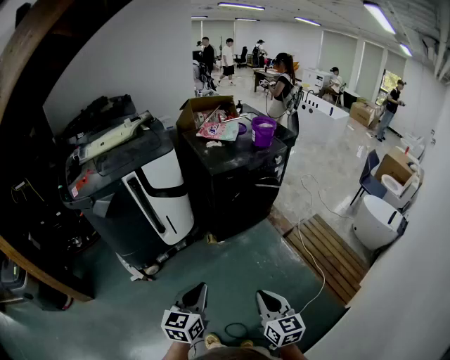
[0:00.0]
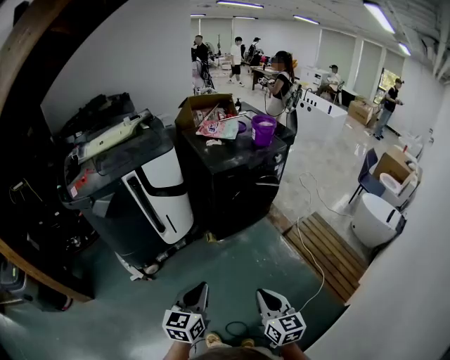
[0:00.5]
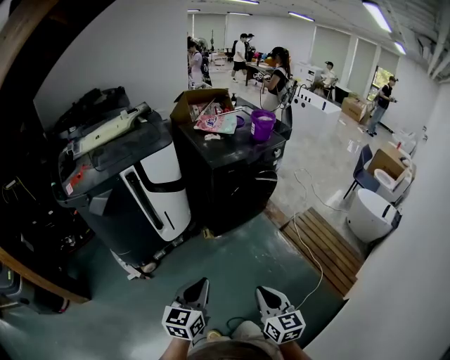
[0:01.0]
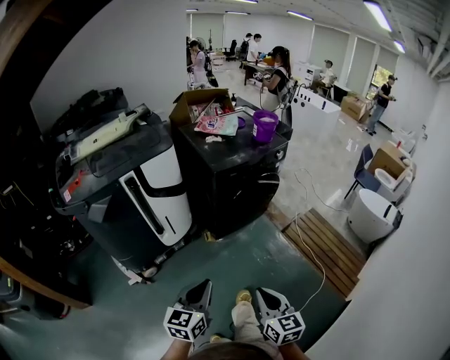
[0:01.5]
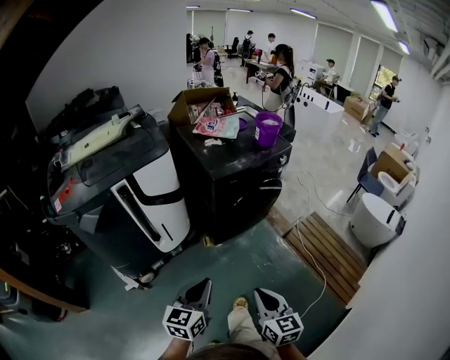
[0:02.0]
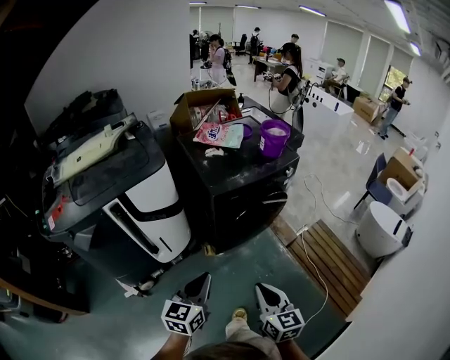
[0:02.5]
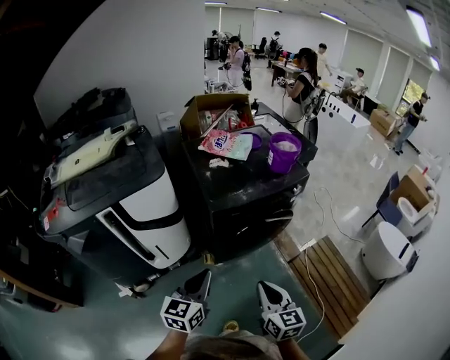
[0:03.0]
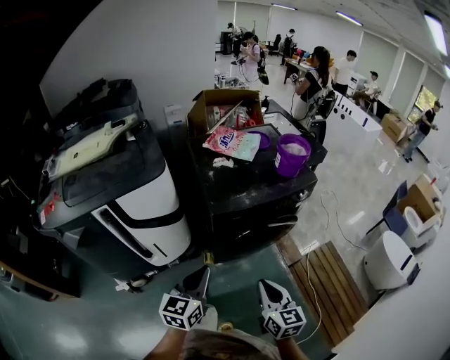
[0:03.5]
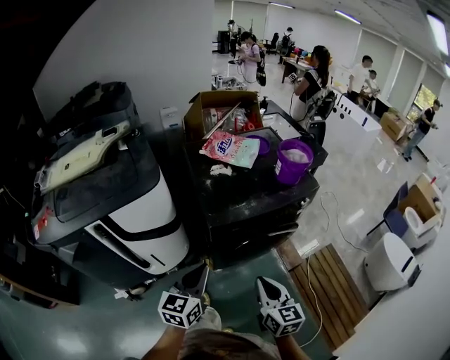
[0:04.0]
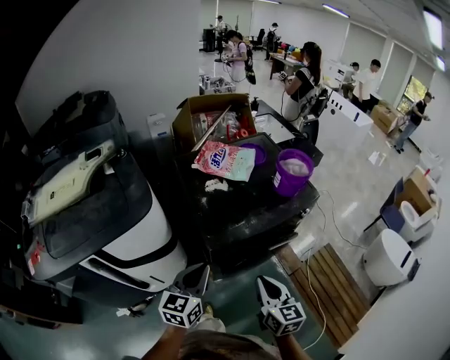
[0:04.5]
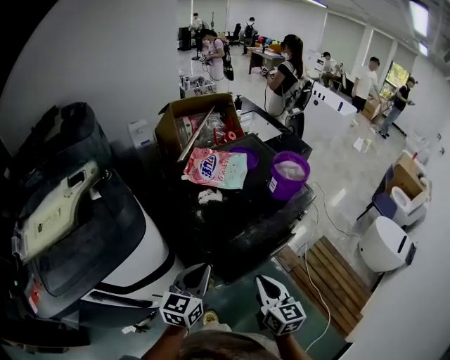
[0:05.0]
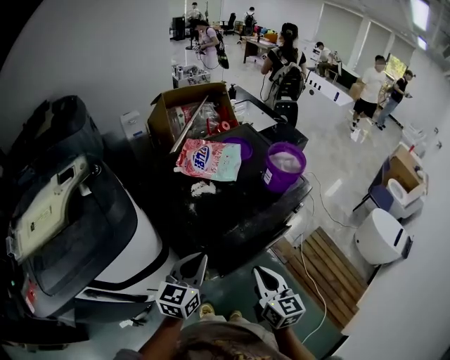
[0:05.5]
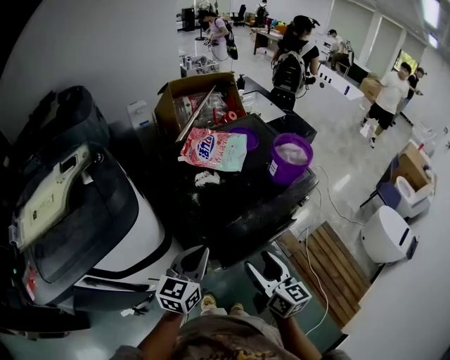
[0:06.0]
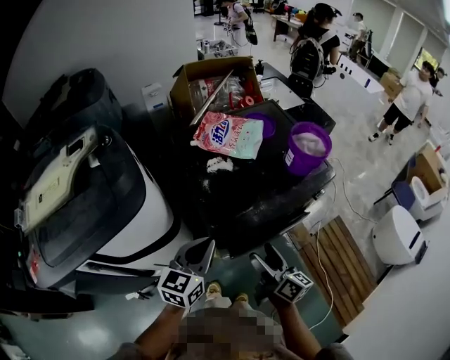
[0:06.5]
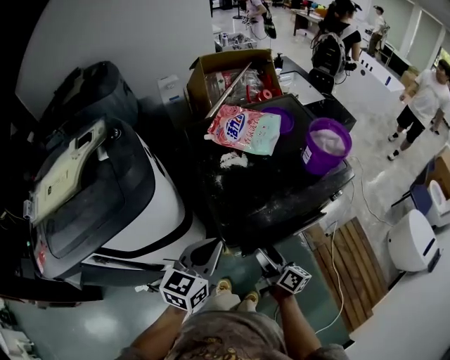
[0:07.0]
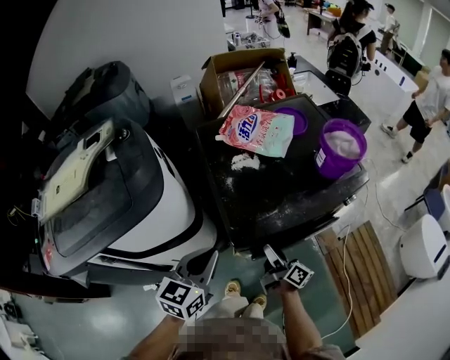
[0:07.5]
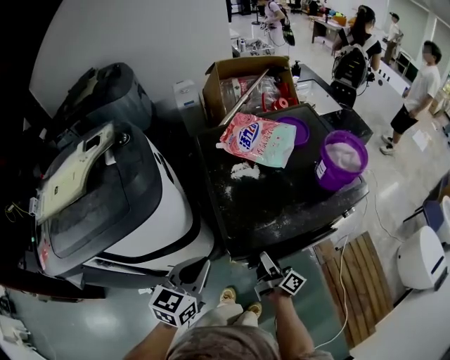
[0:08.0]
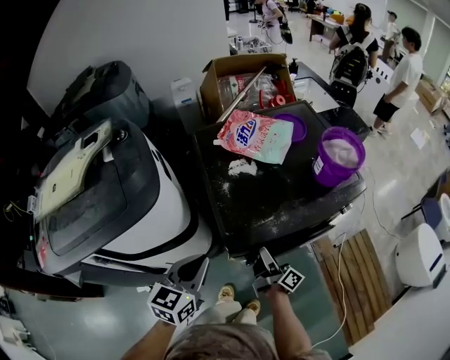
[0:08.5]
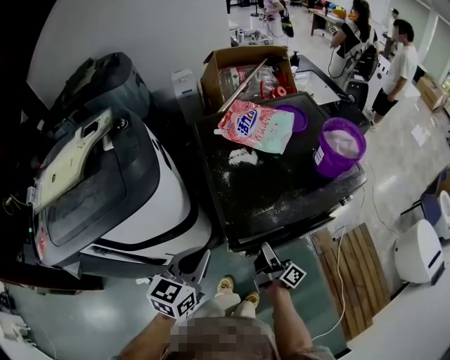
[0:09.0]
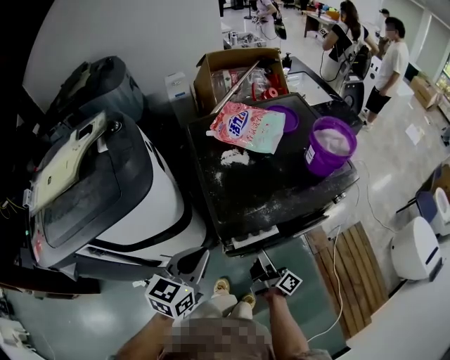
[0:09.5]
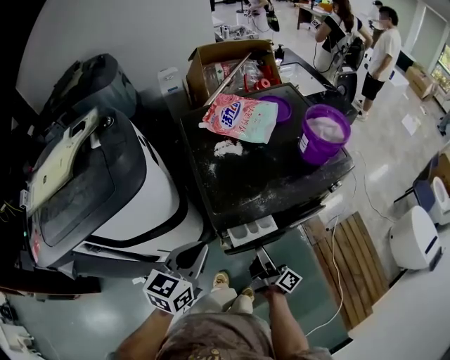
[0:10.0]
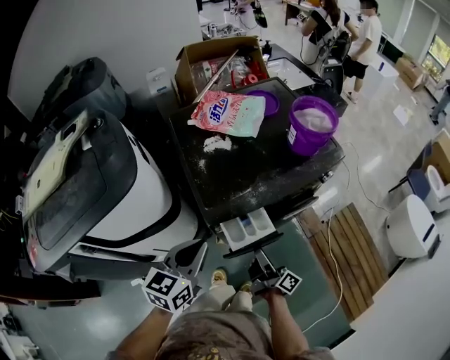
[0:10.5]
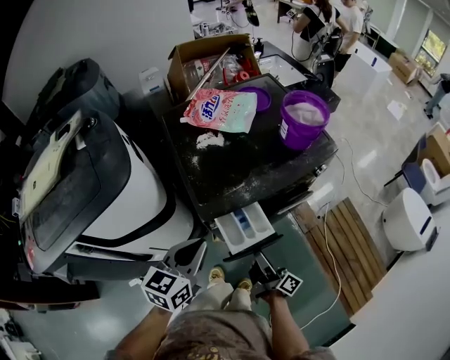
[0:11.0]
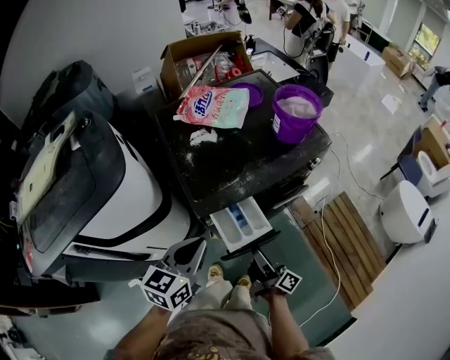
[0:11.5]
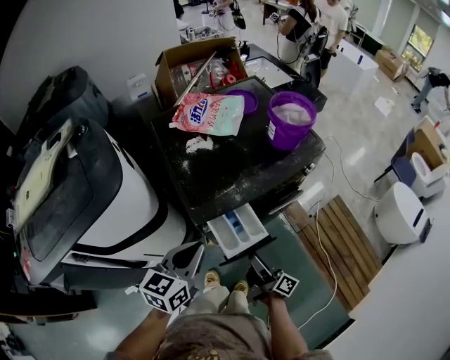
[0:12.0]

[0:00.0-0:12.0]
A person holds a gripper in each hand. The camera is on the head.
0:00.0 to 0:02.0: The left gripper moves forward, some 10 cm. Meanwhile the right gripper goes approximately 15 cm forward and to the left.
0:02.0 to 0:04.0: Both grippers move forward, some 35 cm.
0:04.0 to 0:06.0: The grippers both shift forward by approximately 15 cm. The right gripper opens.
0:06.0 to 0:08.0: The right gripper heads downward and forward, covering approximately 20 cm, and rotates around the line of its fingers by about 40 degrees, clockwise from behind; the left gripper moves approximately 5 cm.
0:08.0 to 0:10.0: The right gripper travels backward by some 5 cm, and closes.
0:10.0 to 0:12.0: The right gripper travels backward by approximately 5 cm.

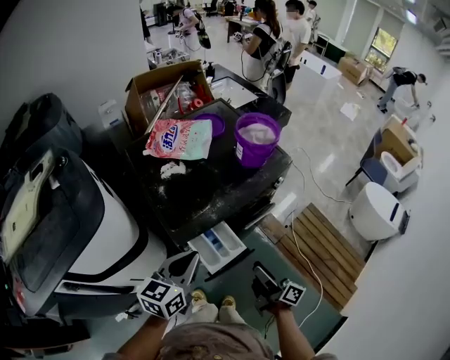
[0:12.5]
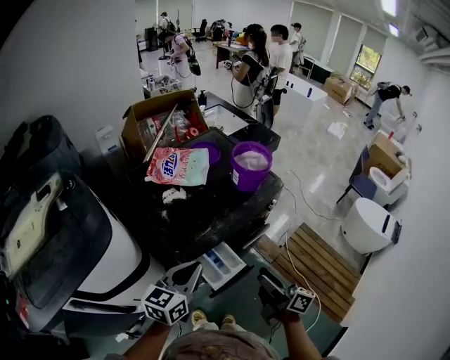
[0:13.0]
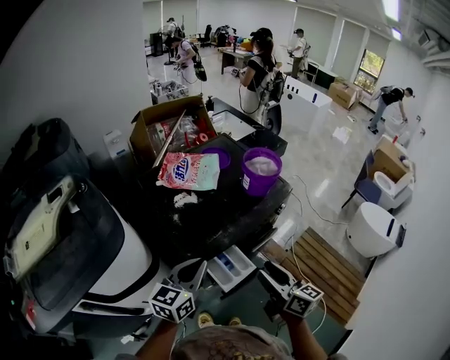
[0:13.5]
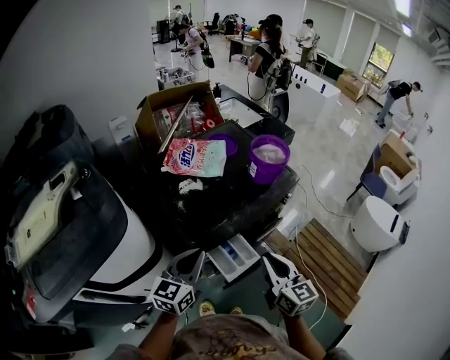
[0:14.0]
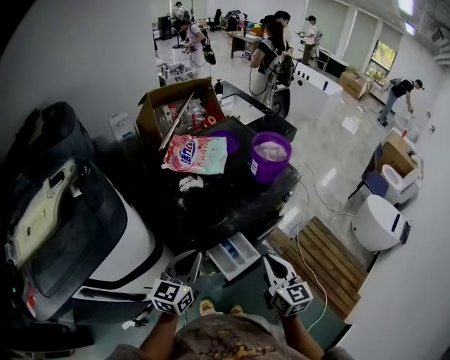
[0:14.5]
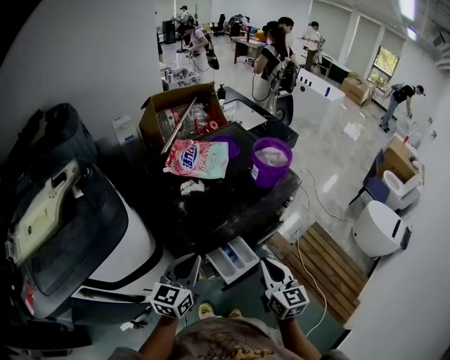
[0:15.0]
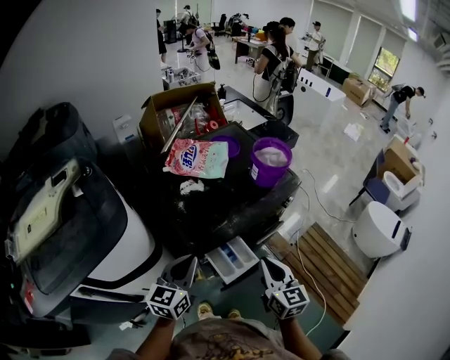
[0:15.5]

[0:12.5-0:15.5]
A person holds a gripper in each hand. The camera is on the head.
0:12.5 to 0:14.0: The right gripper moves upward, some 15 cm, twists about 50 degrees counterclockwise, seen from behind, and closes its fingers. The left gripper is displaced to the left by about 5 cm.
0:14.0 to 0:15.5: The grippers move only a little.

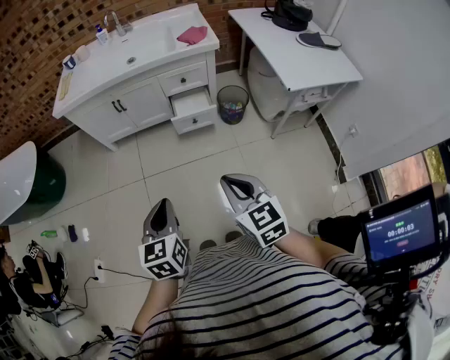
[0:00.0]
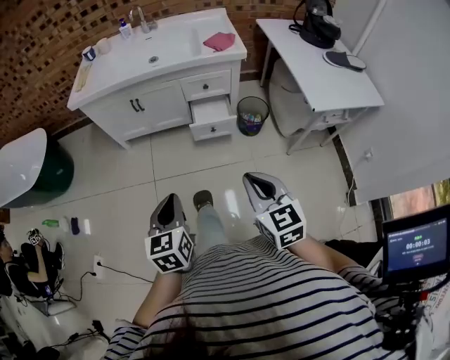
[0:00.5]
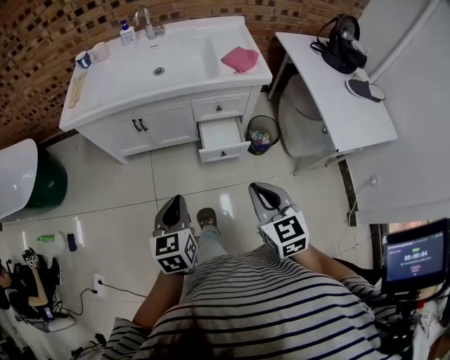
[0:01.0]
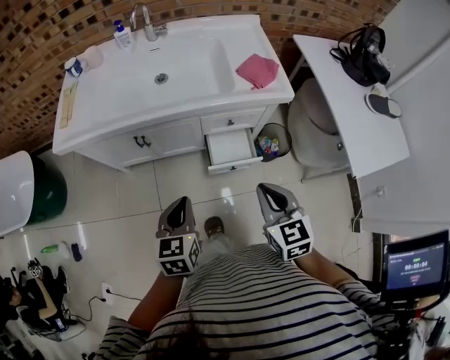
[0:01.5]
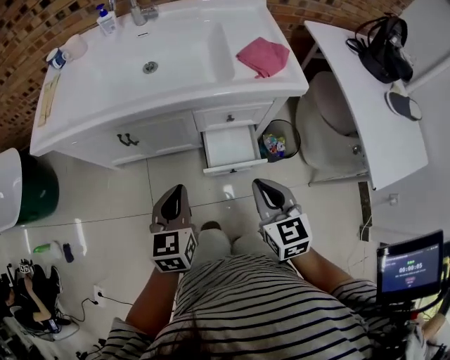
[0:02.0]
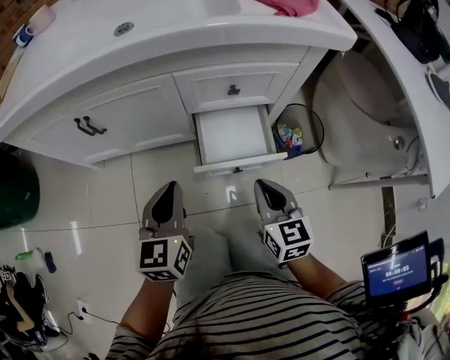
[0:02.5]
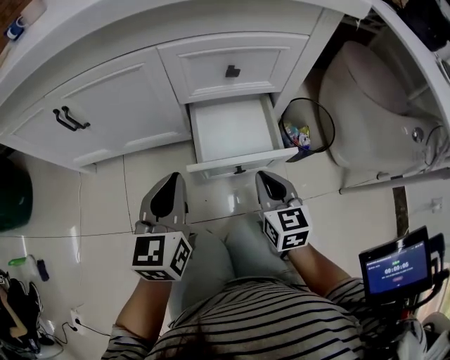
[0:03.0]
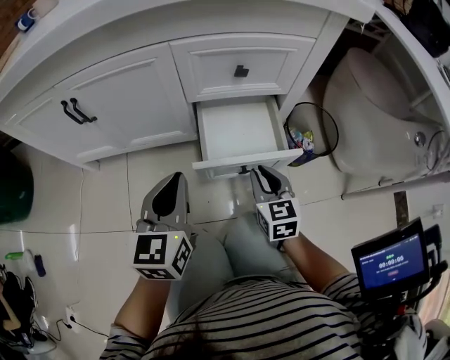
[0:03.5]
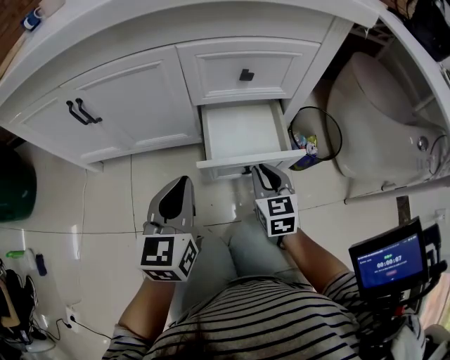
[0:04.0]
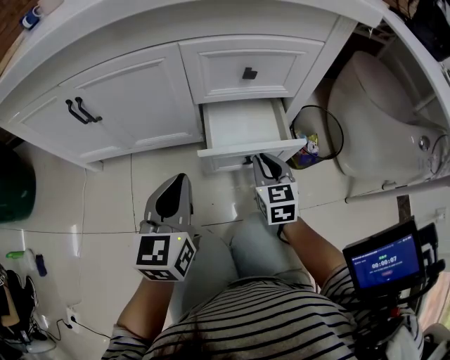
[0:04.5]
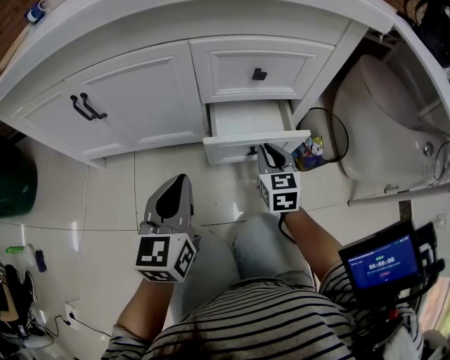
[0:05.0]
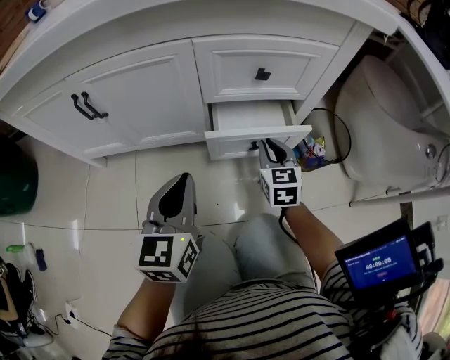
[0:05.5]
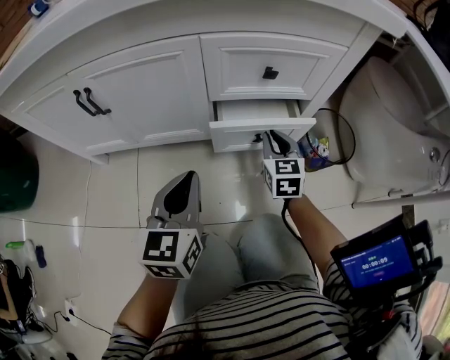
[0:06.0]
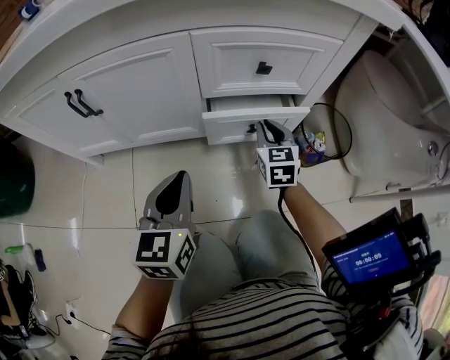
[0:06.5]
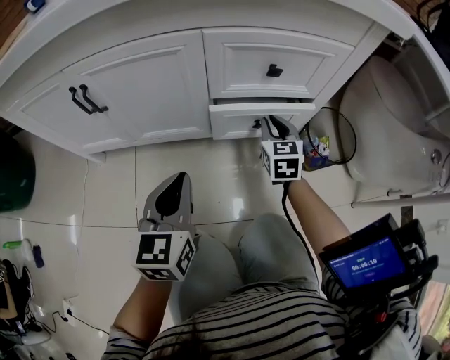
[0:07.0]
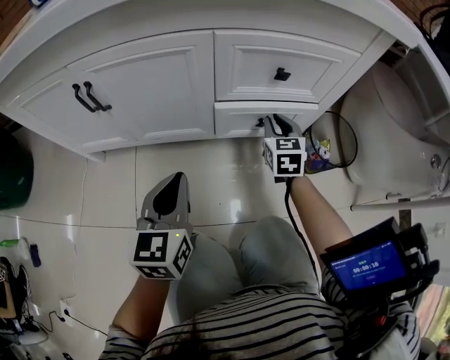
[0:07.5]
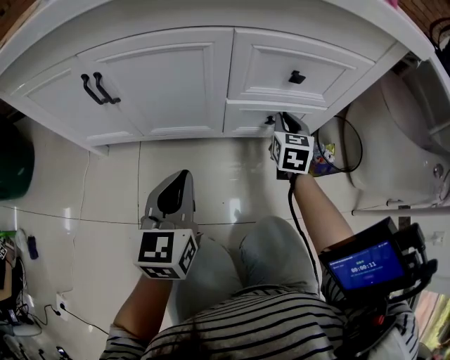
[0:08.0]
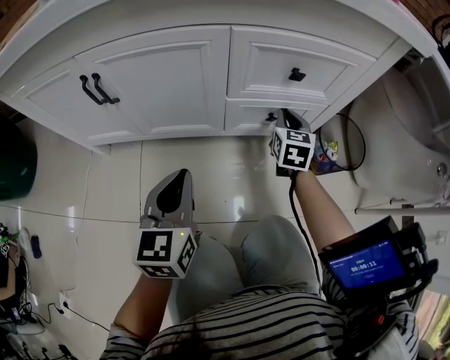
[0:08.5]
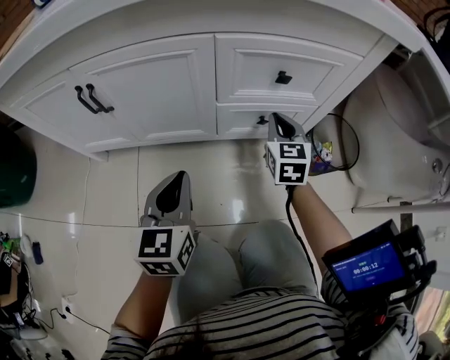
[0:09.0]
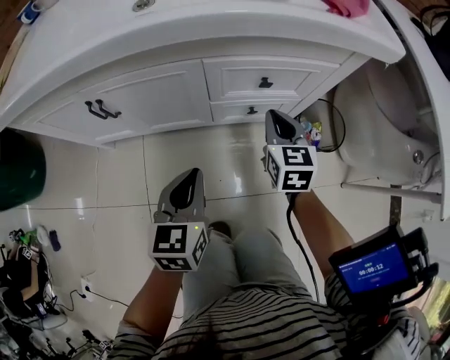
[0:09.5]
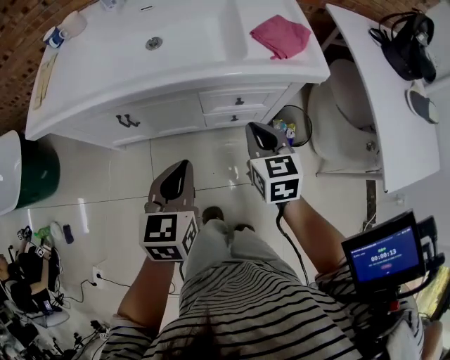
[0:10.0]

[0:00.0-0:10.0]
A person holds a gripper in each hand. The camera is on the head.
0:00.0 to 0:02.0: The pair of grippers is taken forward, roughly 50 cm.
0:02.0 to 0:04.0: Both grippers travel together downward, some 35 cm.
0:04.0 to 0:06.0: The right gripper travels forward by about 10 cm.
0:06.0 to 0:08.0: The right gripper moves forward, roughly 5 cm, while the left gripper moves to the left, roughly 5 cm.
0:08.0 to 0:10.0: Both grippers move upward, some 35 cm.

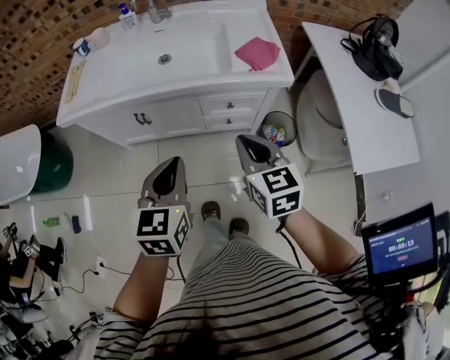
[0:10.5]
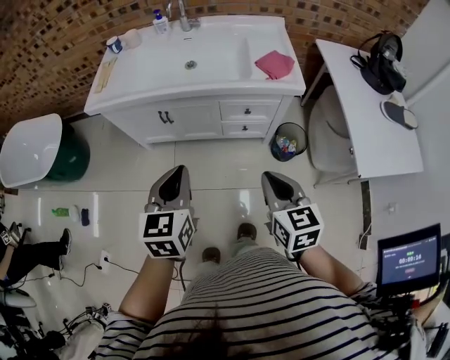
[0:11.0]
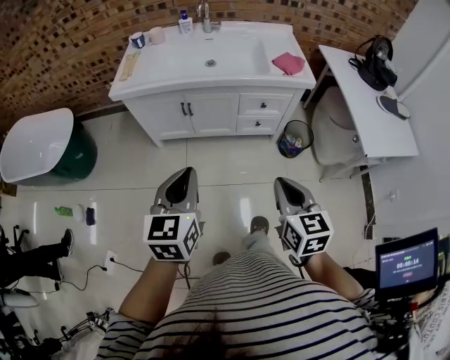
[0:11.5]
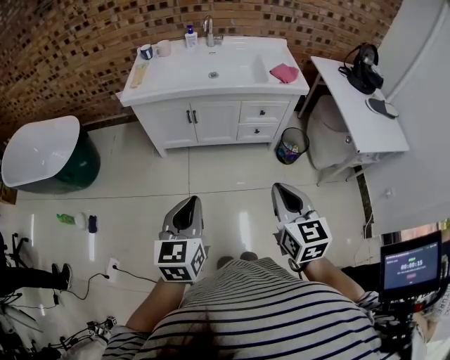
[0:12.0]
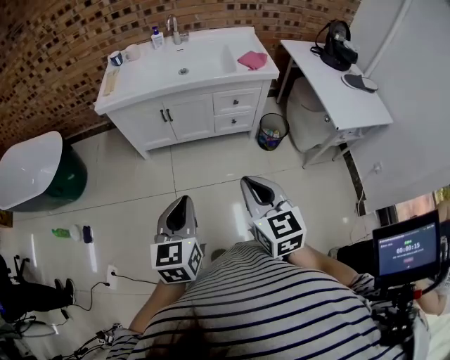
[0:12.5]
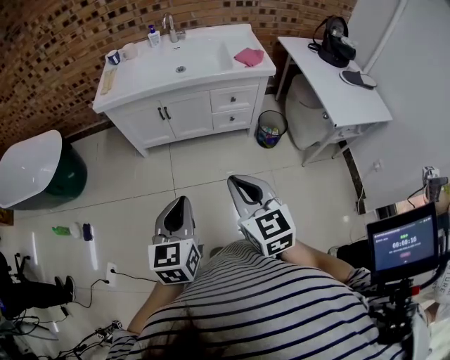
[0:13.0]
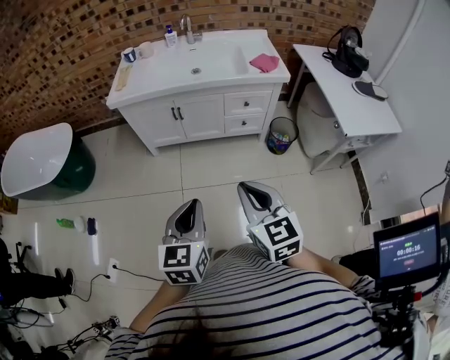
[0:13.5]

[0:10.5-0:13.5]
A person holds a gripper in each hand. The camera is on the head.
0:10.5 to 0:12.0: Both grippers travel together backward and to the left, about 40 cm.
0:12.0 to 0:13.5: The left gripper moves to the right, some 10 cm.
